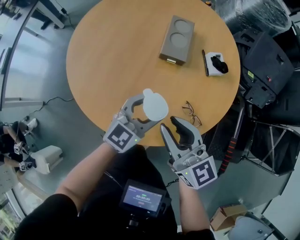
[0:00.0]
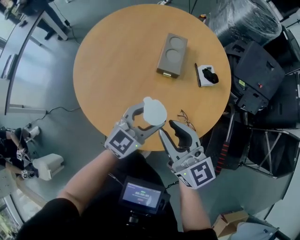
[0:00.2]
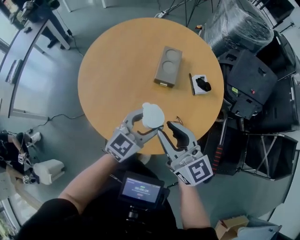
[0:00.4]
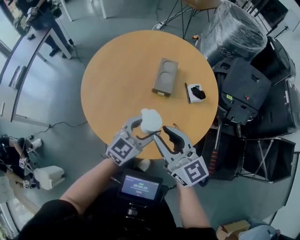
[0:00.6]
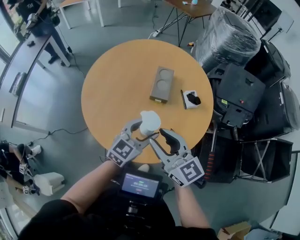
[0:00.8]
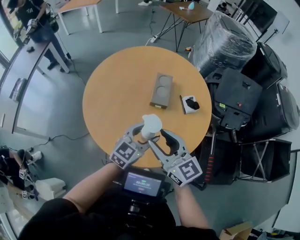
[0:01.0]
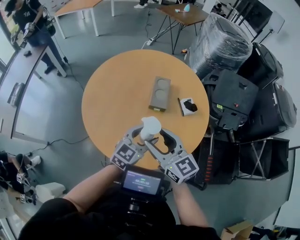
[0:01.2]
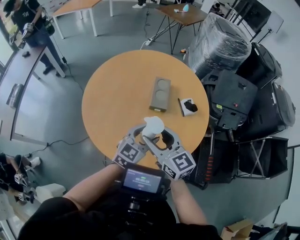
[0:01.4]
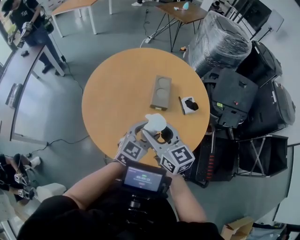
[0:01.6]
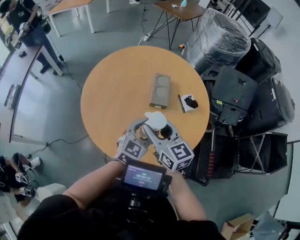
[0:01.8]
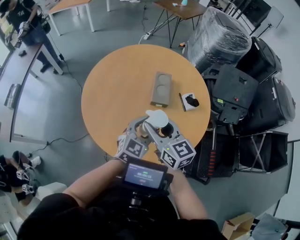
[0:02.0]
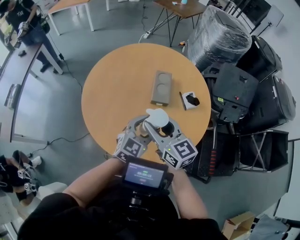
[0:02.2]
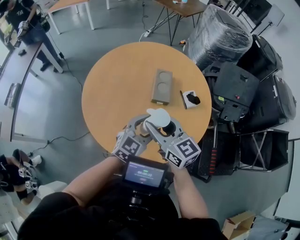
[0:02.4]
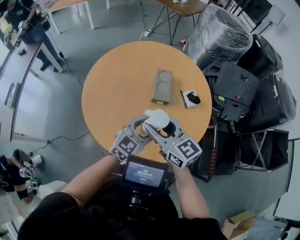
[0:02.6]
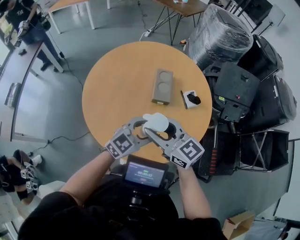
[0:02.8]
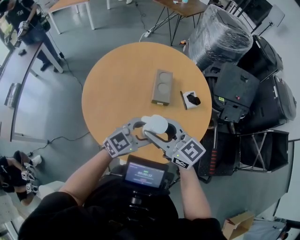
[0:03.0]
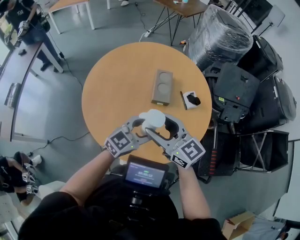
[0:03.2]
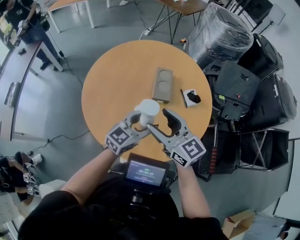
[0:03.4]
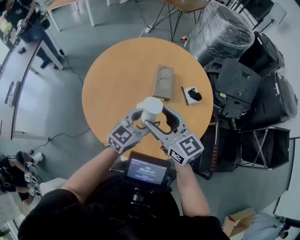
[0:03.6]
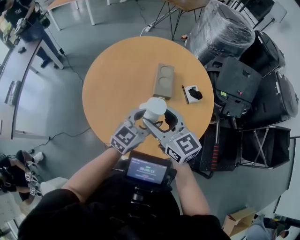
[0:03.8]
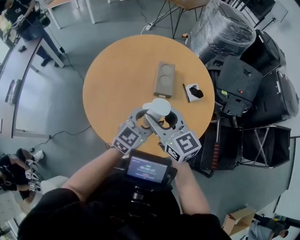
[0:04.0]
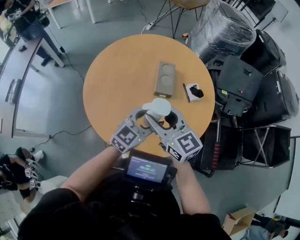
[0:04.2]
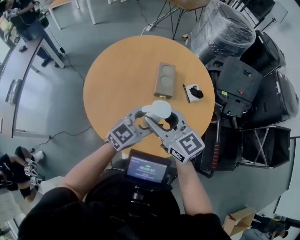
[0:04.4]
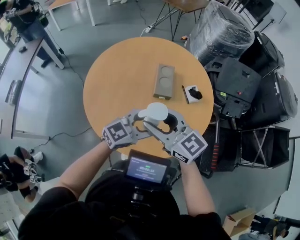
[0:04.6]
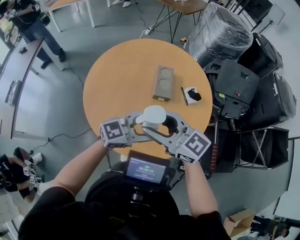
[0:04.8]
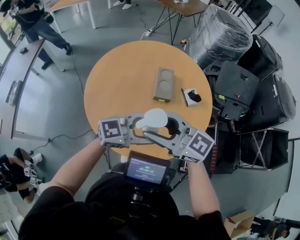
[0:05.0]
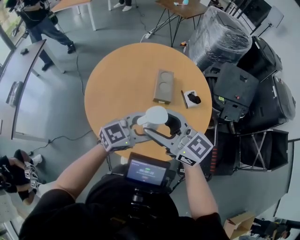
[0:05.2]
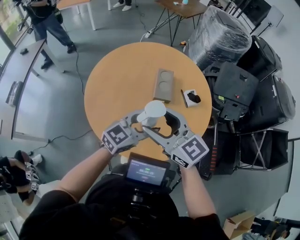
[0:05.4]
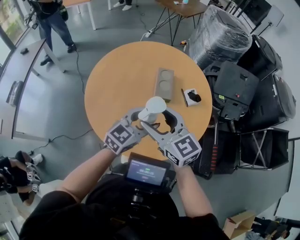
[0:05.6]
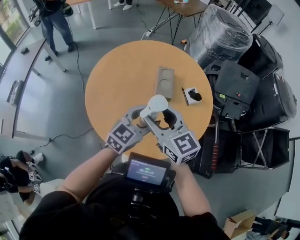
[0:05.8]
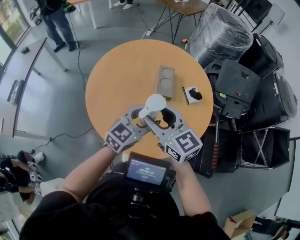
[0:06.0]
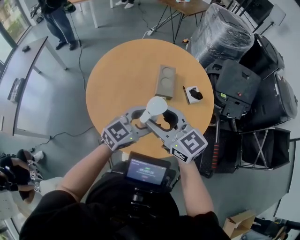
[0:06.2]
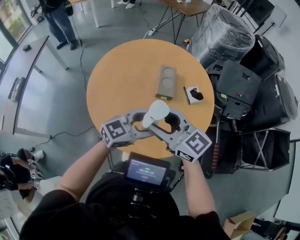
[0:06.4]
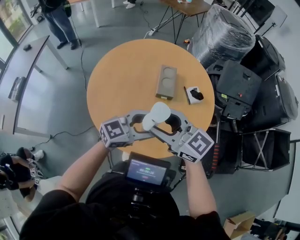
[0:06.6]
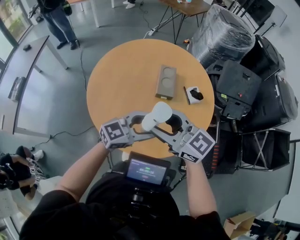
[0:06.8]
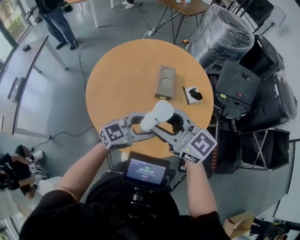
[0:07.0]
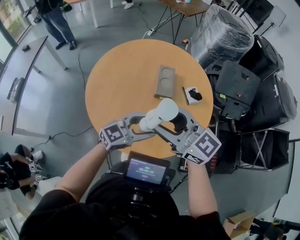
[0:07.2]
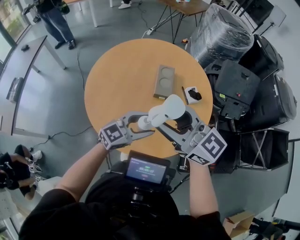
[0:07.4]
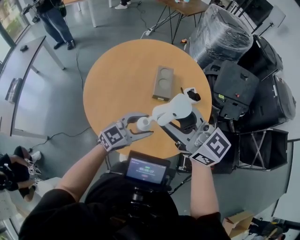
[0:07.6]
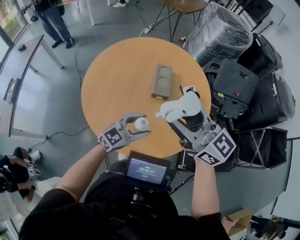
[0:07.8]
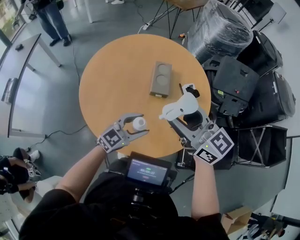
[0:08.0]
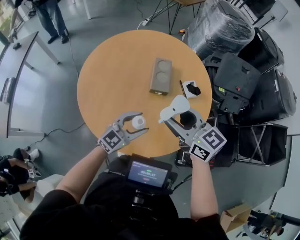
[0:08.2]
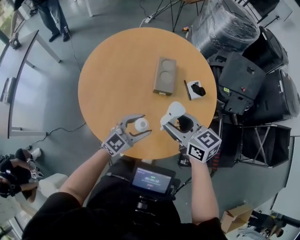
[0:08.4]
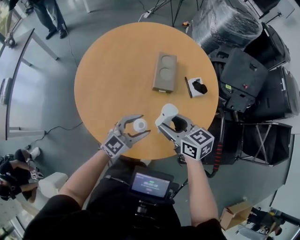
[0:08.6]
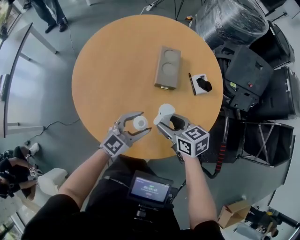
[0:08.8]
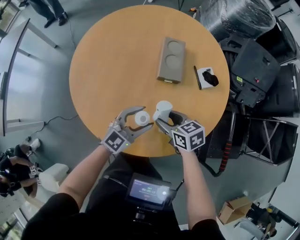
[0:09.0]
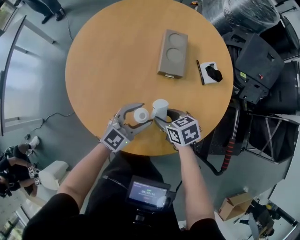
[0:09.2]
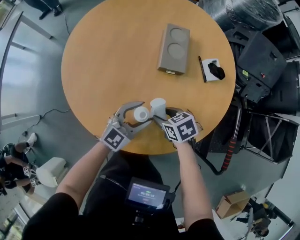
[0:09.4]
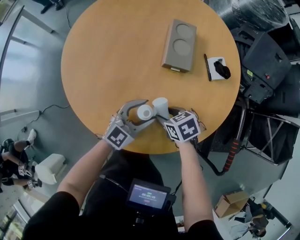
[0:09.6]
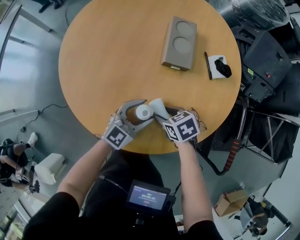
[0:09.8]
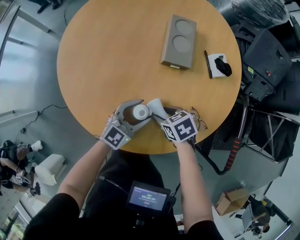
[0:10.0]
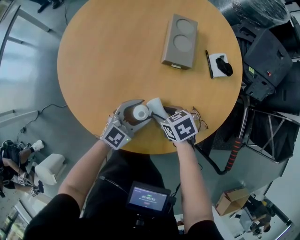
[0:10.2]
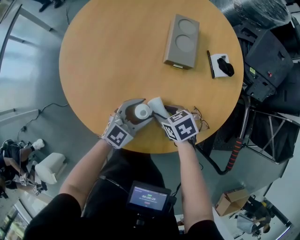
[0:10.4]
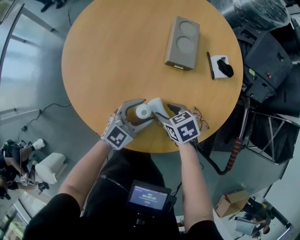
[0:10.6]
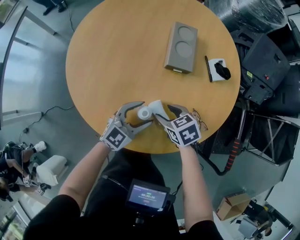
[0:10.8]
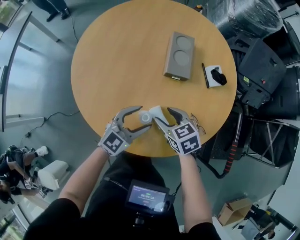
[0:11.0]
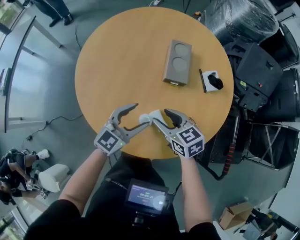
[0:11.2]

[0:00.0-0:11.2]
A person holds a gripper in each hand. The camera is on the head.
0.0 to 1.6 s: The right gripper goes roughly 20 cm upward and to the left, and opens up, while the left gripper travels upward by some 20 cm.
1.6 to 3.2 s: The left gripper changes its angle by some 20 degrees.
3.2 to 4.8 s: The right gripper shifts by roughly 5 cm. The left gripper shifts by approximately 5 cm.
6.4 to 8.0 s: The left gripper is displaced downward by some 10 cm, while the right gripper ends up roughly 10 cm from where it was.
8.0 to 9.6 s: The right gripper travels downward by some 50 cm, and tilts its fingers approximately 60 degrees downward, while the left gripper goes approximately 25 cm downward.
9.6 to 11.2 s: The right gripper travels upward by approximately 15 cm, and changes its angle by roughly 30 degrees. Meanwhile the left gripper moves upward and to the left, about 15 cm.

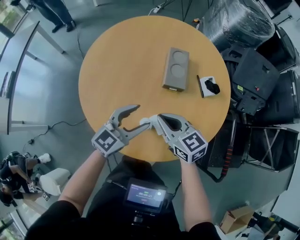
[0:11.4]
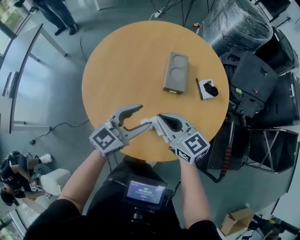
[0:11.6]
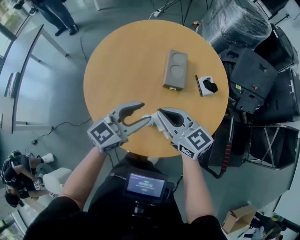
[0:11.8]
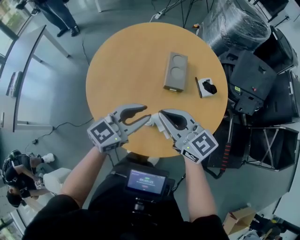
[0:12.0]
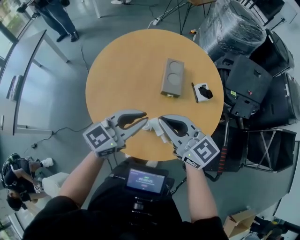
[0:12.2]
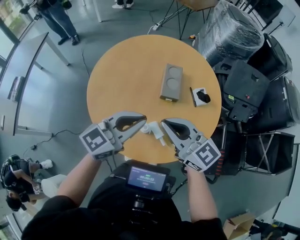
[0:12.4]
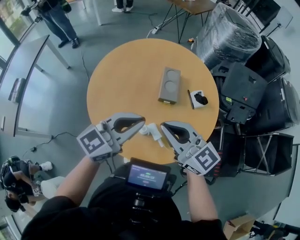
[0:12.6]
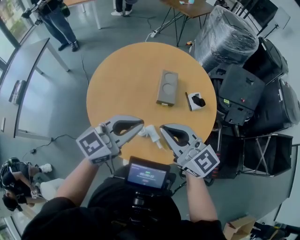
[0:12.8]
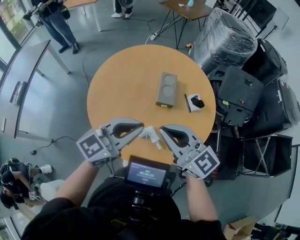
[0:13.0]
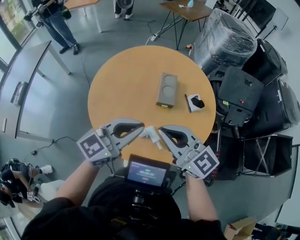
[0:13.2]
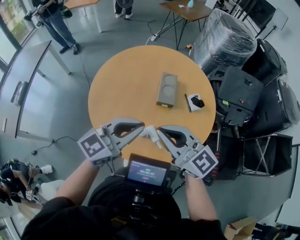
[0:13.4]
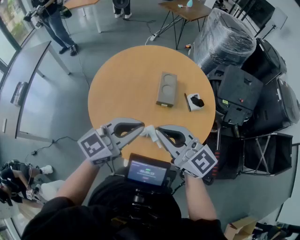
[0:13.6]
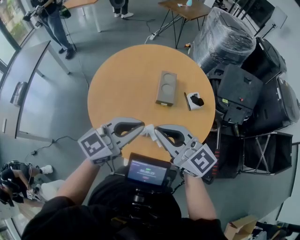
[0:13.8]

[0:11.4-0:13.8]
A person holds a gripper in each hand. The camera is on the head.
11.4 to 12.6 s: The two grippers go approximately 25 cm upward. The left gripper closes up, while the right gripper rotates roughly 30 degrees.
12.6 to 13.8 s: The right gripper shifts by some 5 cm.

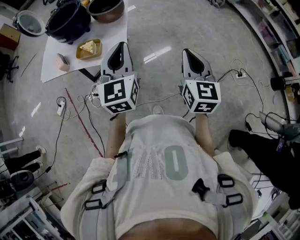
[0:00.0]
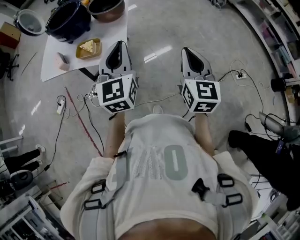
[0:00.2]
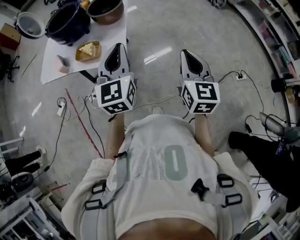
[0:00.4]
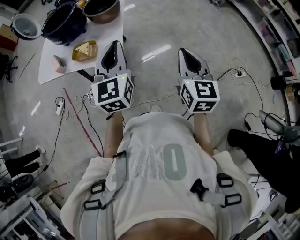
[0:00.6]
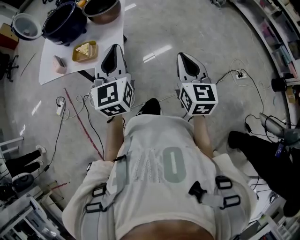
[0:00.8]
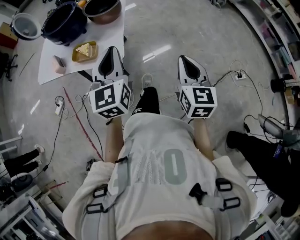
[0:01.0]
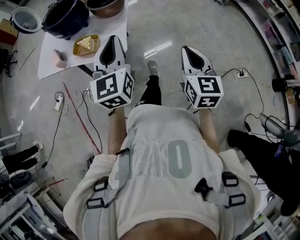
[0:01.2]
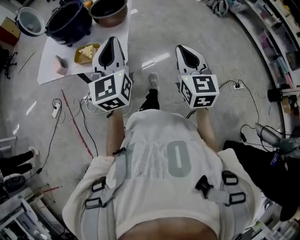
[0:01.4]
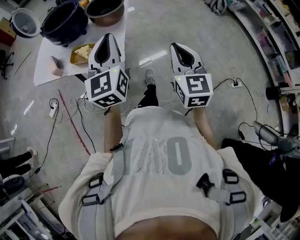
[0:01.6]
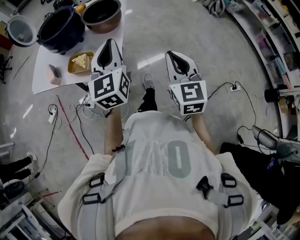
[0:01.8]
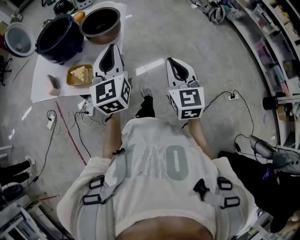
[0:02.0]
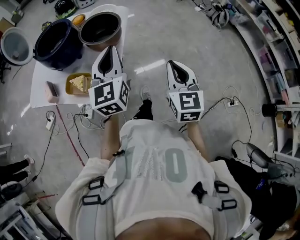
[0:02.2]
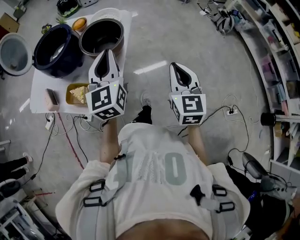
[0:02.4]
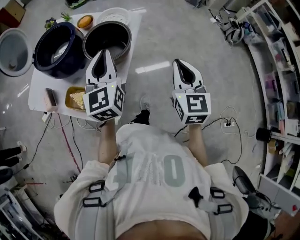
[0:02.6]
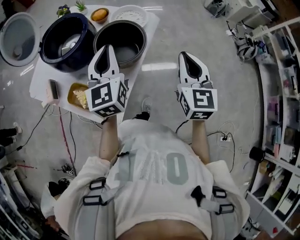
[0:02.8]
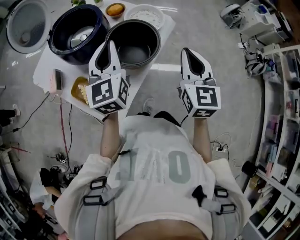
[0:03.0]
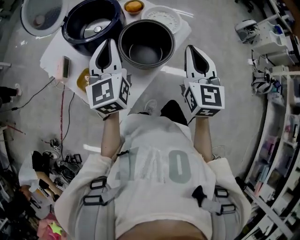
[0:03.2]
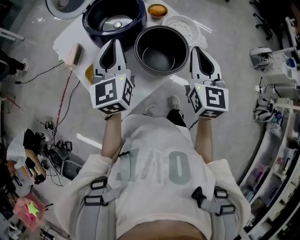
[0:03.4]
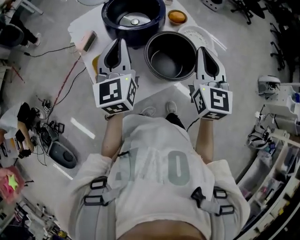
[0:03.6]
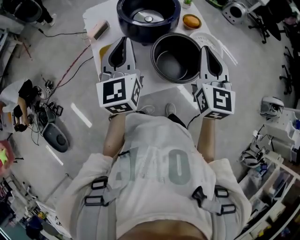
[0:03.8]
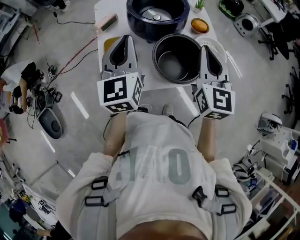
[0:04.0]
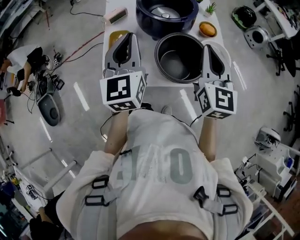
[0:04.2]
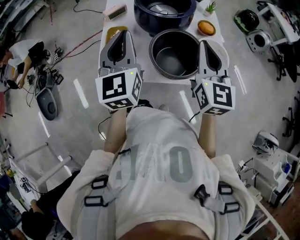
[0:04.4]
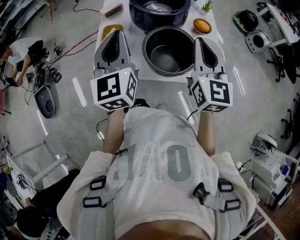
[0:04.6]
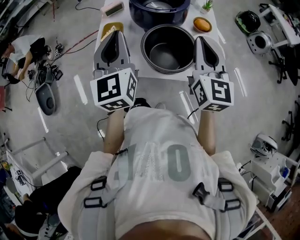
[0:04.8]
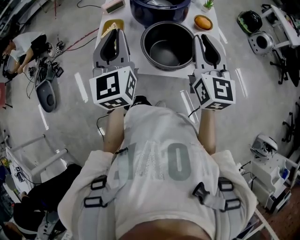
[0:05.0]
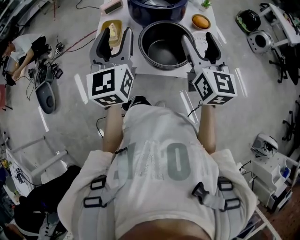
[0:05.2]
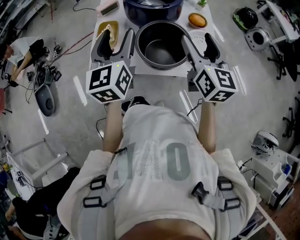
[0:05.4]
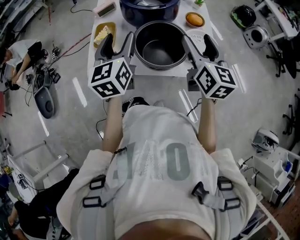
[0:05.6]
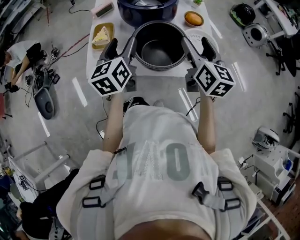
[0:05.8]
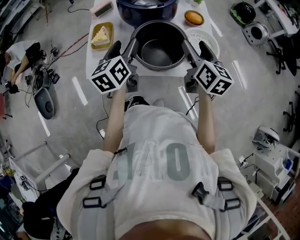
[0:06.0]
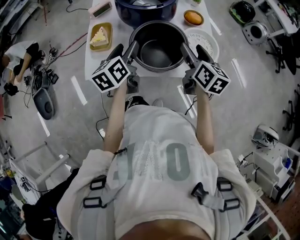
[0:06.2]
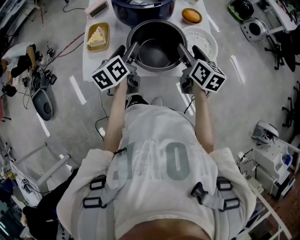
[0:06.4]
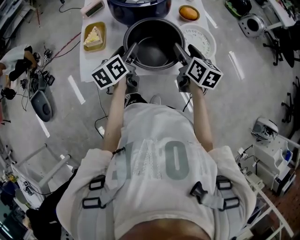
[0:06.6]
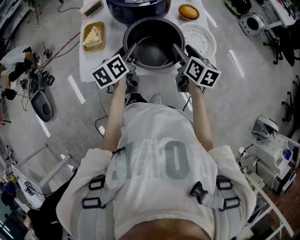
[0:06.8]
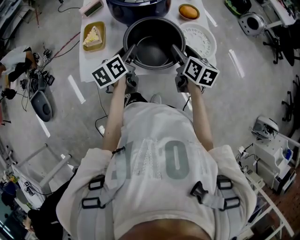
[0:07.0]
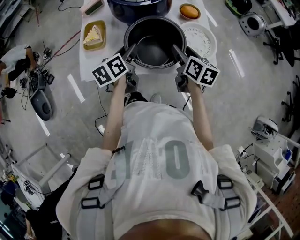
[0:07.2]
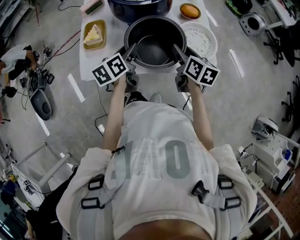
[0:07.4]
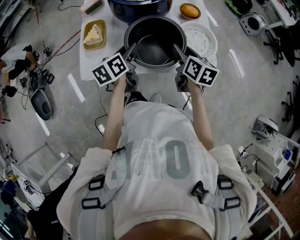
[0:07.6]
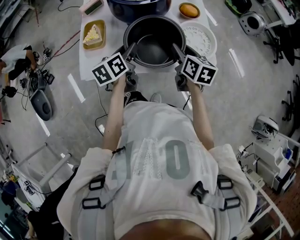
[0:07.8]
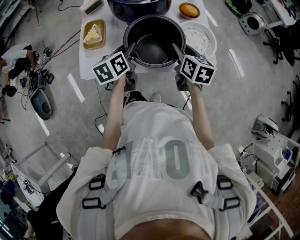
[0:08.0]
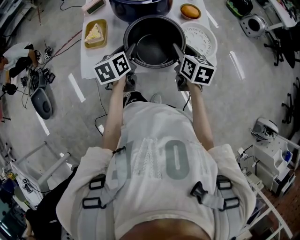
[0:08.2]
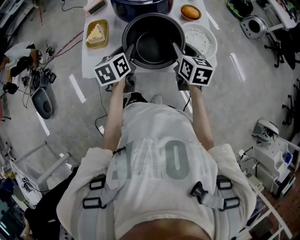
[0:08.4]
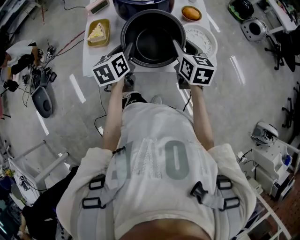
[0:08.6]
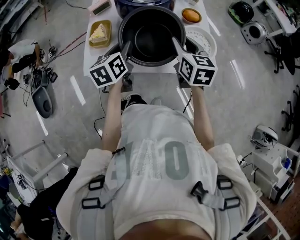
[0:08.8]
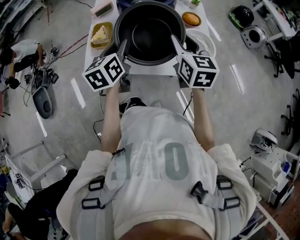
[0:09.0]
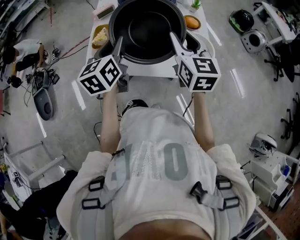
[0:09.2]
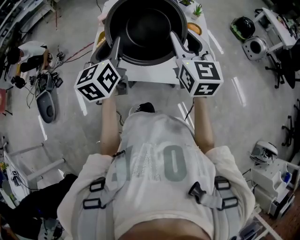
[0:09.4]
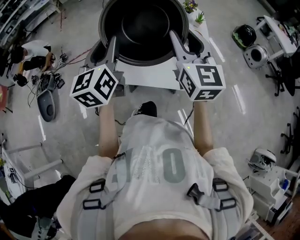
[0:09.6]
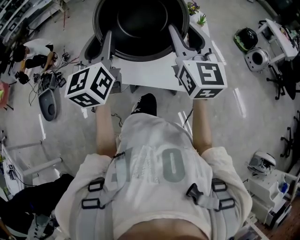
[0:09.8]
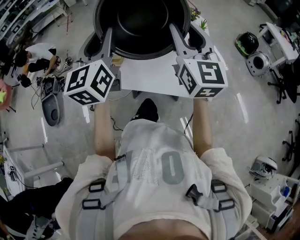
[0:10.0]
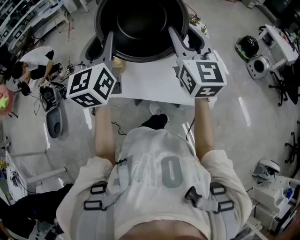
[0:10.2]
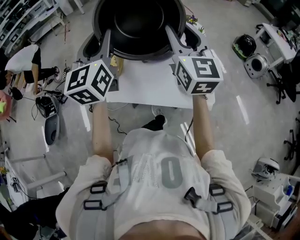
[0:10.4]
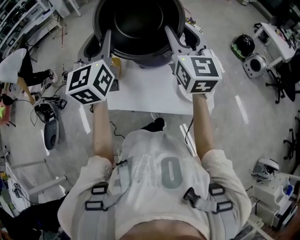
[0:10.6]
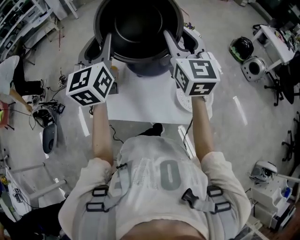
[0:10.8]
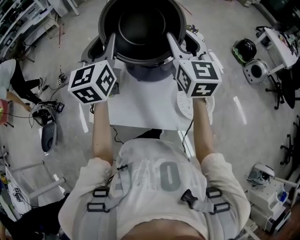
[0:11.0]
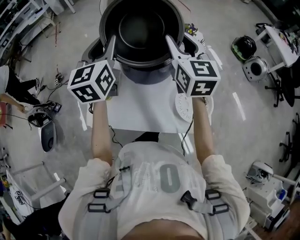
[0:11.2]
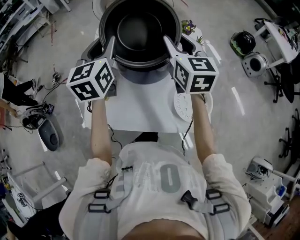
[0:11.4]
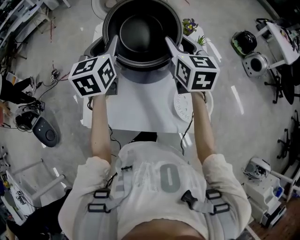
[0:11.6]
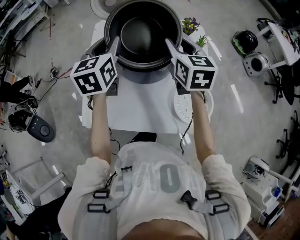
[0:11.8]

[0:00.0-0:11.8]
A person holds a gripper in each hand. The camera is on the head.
0.0 to 1.4 s: The grippers both shift forward by about 5 cm.
1.4 to 3.0 s: The right gripper changes place by roughly 40 cm, and changes its angle by roughly 20 degrees. The left gripper ends up approximately 35 cm from where it was, and rotates approximately 30 degrees.
3.0 to 4.4 s: The right gripper shifts by about 15 cm, and turns by approximately 60 degrees. Meanwhile the left gripper changes place by some 10 cm, and rotates some 60 degrees.
4.4 to 6.0 s: Both grippers travel together downward and to the right, about 15 cm. The left gripper turns by roughly 30 degrees, and opens its fingers. Meanwhile the right gripper rotates approximately 30 degrees, and opens.
6.0 to 7.4 s: Both grippers move downward, approximately 10 cm.
7.4 to 8.8 s: The two grippers go roughly 5 cm upward. The right gripper rotates roughly 20 degrees.
8.8 to 10.4 s: The grippers both shift upward by approximately 25 cm. The right gripper points its fingers about 30 degrees further upward; the left gripper tilts its fingers roughly 30 degrees upward.
10.4 to 11.8 s: The grippers both shift forward and downward by some 25 cm. The right gripper swivels some 30 degrees, while the left gripper rotates roughly 30 degrees.
